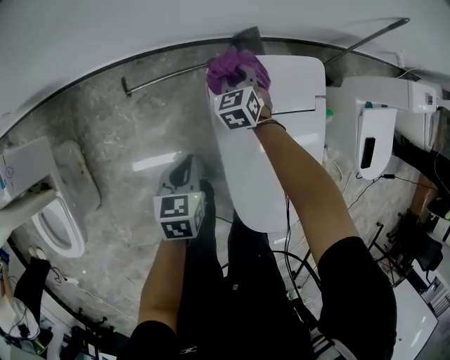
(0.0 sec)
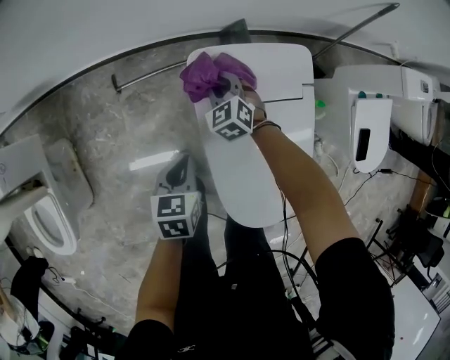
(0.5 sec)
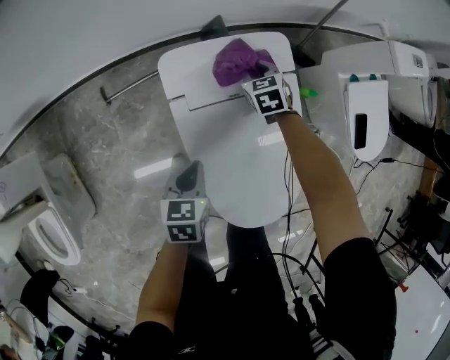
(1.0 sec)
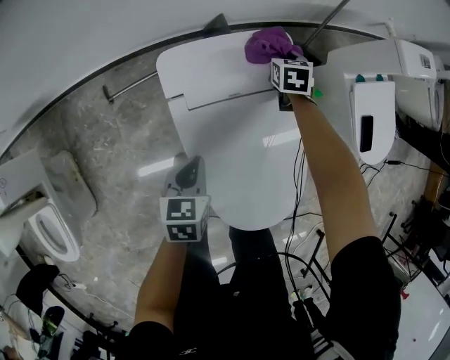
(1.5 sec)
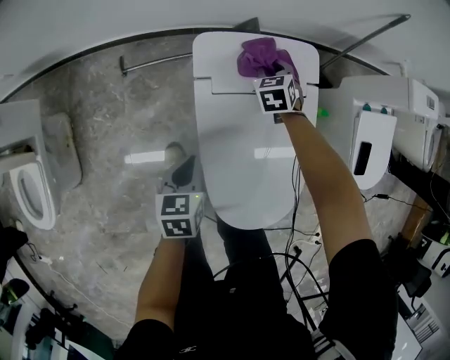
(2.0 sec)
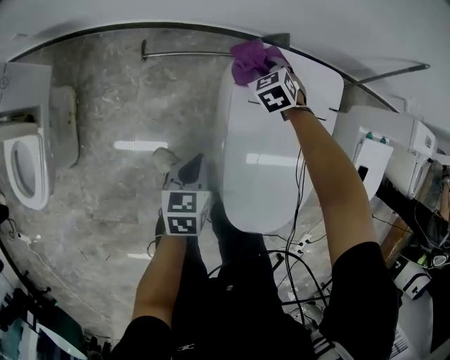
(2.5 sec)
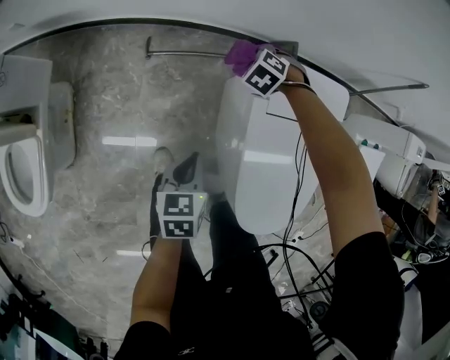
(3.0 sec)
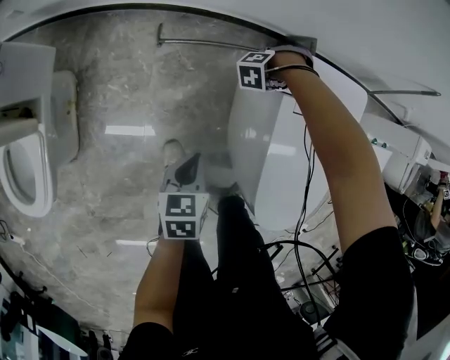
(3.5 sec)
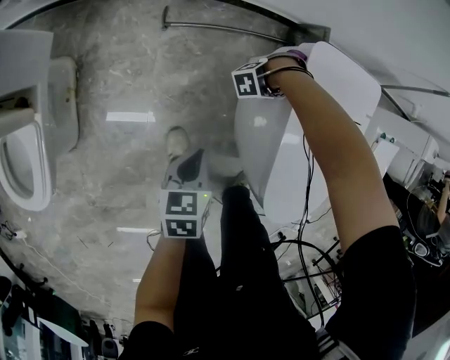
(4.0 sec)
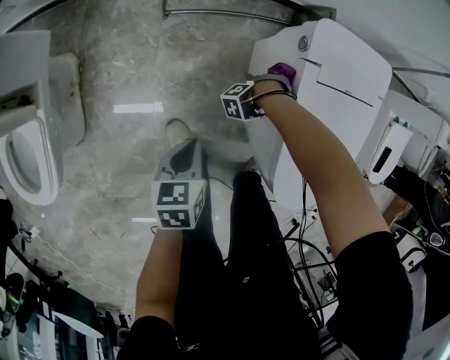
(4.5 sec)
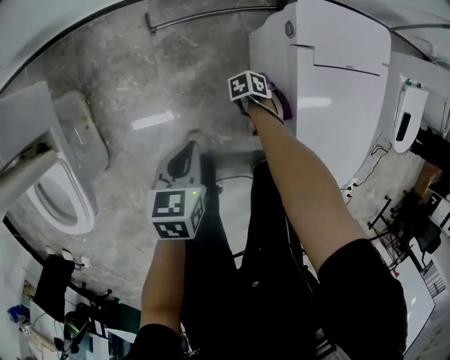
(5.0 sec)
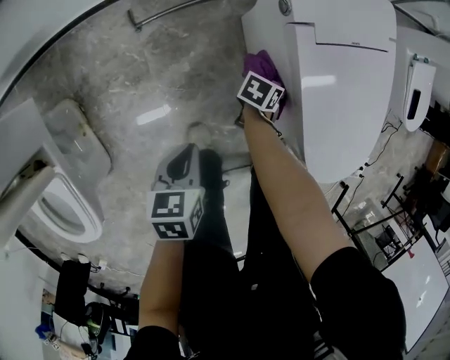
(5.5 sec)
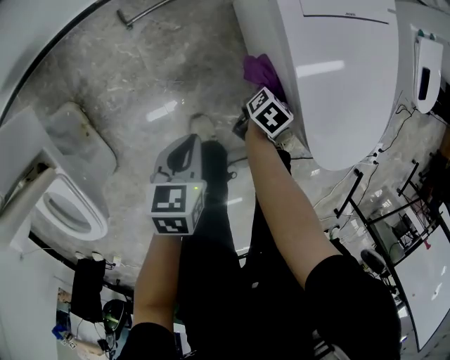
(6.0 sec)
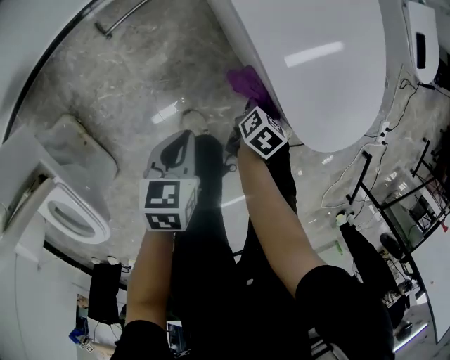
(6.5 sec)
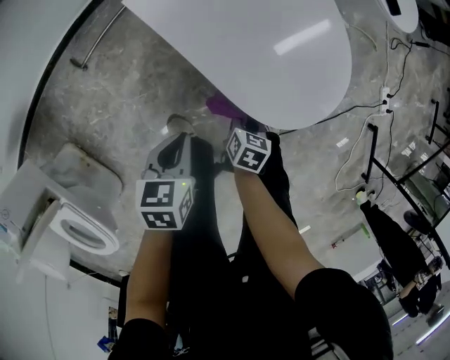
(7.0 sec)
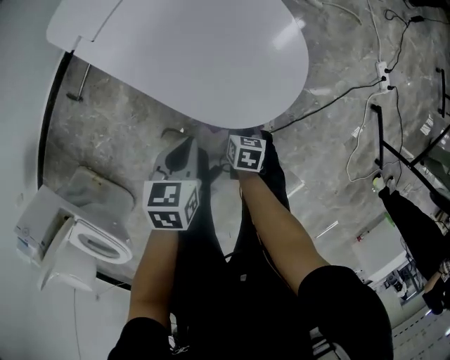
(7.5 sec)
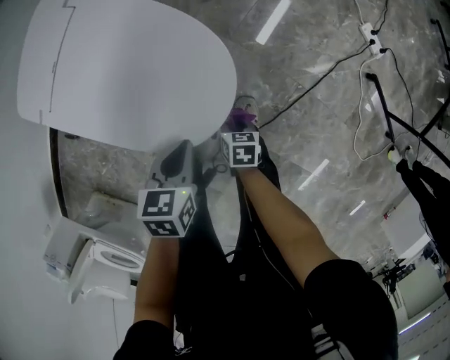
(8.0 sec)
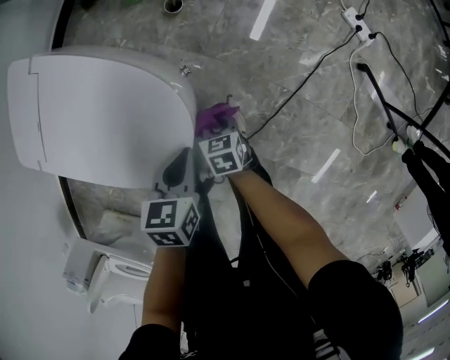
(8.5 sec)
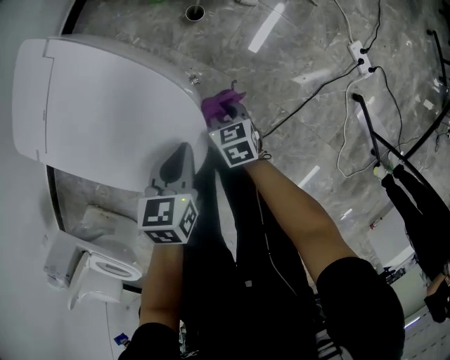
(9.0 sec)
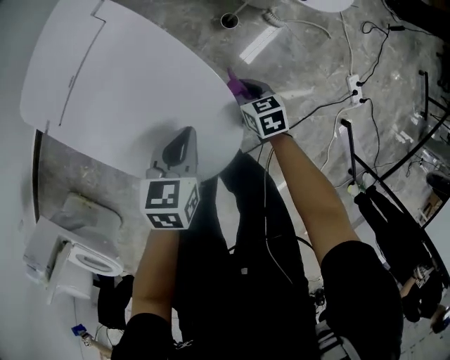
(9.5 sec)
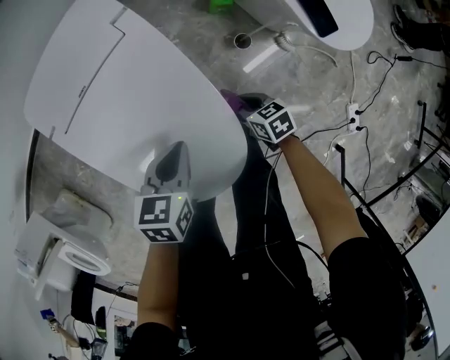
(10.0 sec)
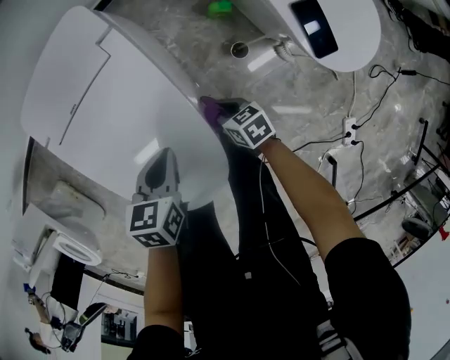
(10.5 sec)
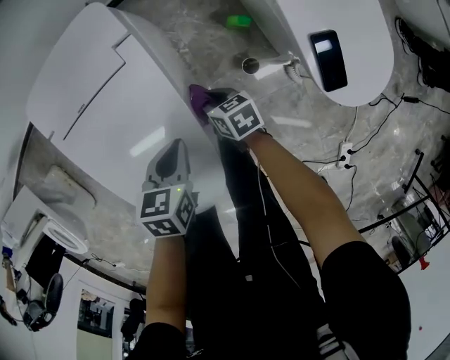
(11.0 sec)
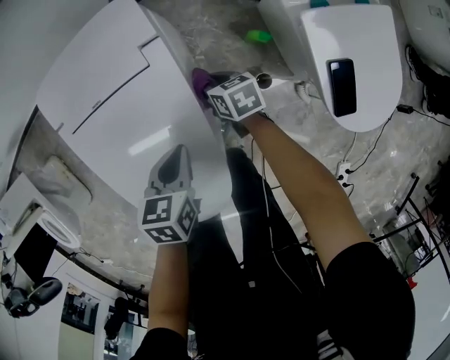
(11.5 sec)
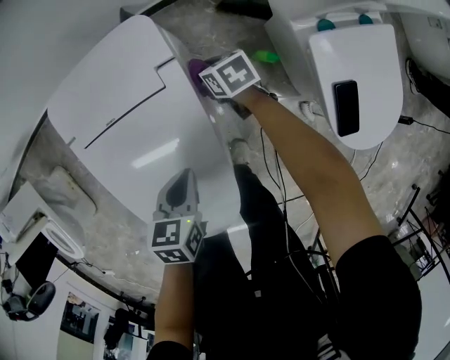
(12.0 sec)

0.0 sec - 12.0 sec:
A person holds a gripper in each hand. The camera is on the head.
0.0 sec - 2.0 sec: The left gripper moves to the right and backward, about 15 cm, while the right gripper travels to the right by about 15 cm.
2.0 sec - 4.0 sec: The right gripper moves about 30 cm, and changes its angle by roughly 110 degrees, while the left gripper changes place by approximately 25 cm.
4.0 sec - 6.0 sec: The left gripper turns by some 30 degrees; the right gripper moves roughly 20 cm, and rolls clockwise, seen from behind, by some 160 degrees.
6.0 sec - 8.0 sec: The pair of grippers is taken to the right, some 40 cm. The left gripper changes its angle by roughly 40 degrees.
8.0 sec - 10.0 sec: The left gripper changes place by roughly 20 cm, and turns by approximately 20 degrees. Meanwhile the right gripper moves about 30 cm, and twists roughly 40 degrees counterclockwise, seen from behind.
10.0 sec - 12.0 sec: The right gripper moves forward, approximately 35 cm. Meanwhile the left gripper is displaced forward by some 10 cm, and turns by about 20 degrees.

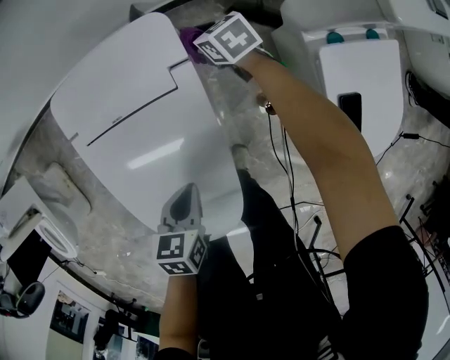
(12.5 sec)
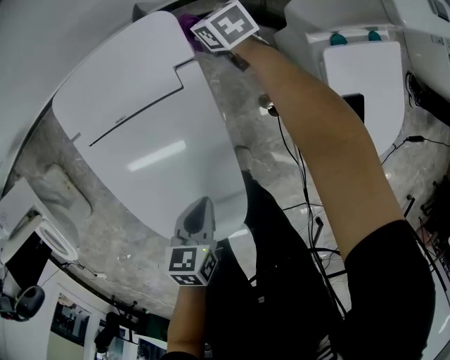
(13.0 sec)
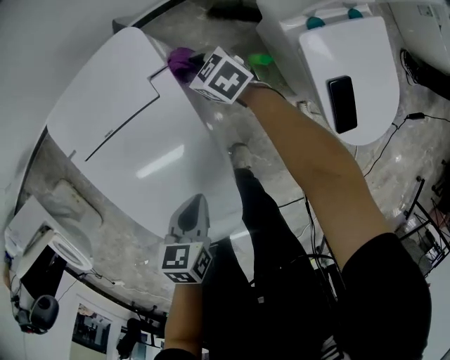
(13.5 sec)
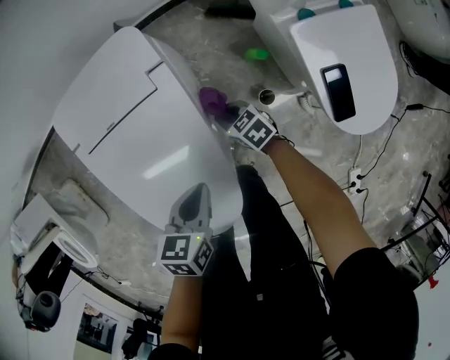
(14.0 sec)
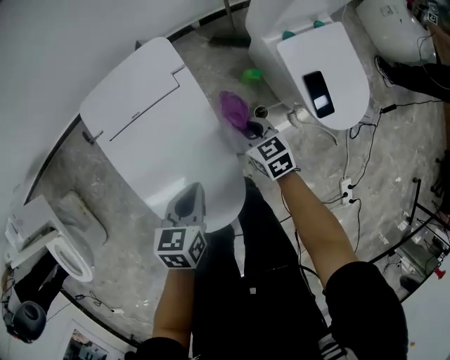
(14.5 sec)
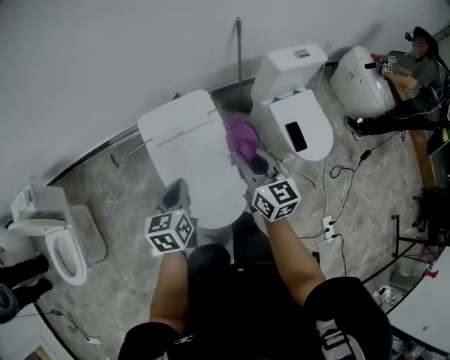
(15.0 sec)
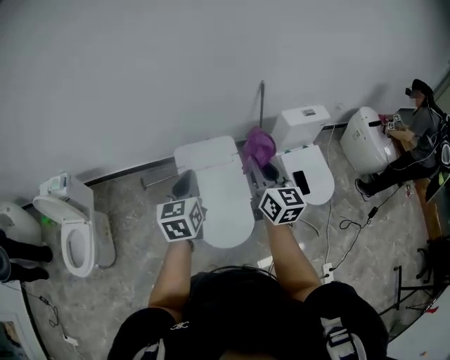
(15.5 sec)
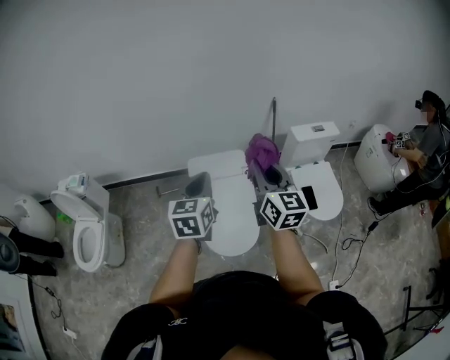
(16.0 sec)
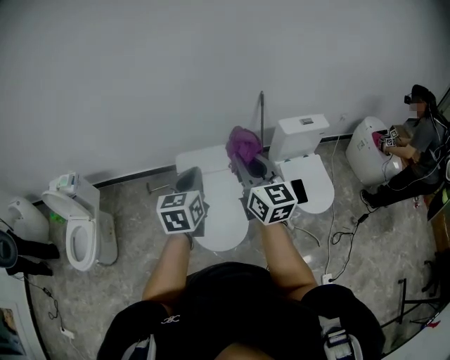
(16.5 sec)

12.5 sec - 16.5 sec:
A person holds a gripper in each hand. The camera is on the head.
12.5 sec - 14.5 sec: The left gripper goes roughly 10 cm upward and backward. Meanwhile the right gripper moves backward and upward, roughly 35 cm, and turns by about 20 degrees.
14.5 sec - 16.5 sec: Both grippers travel together upward, about 60 cm. The left gripper changes its angle by some 40 degrees, while the right gripper tips its fingers upward by some 40 degrees.

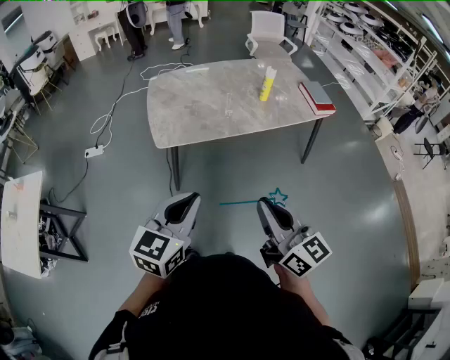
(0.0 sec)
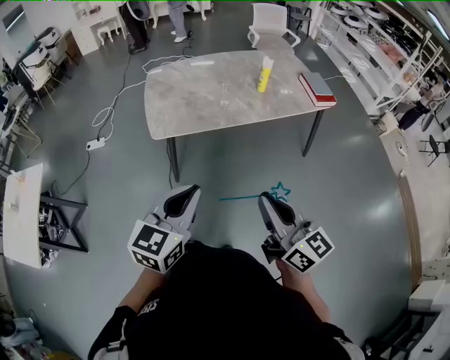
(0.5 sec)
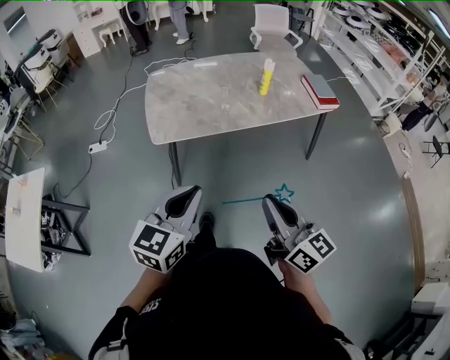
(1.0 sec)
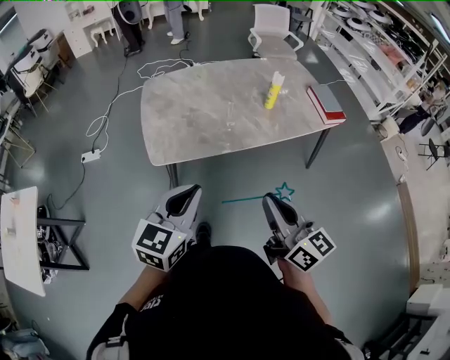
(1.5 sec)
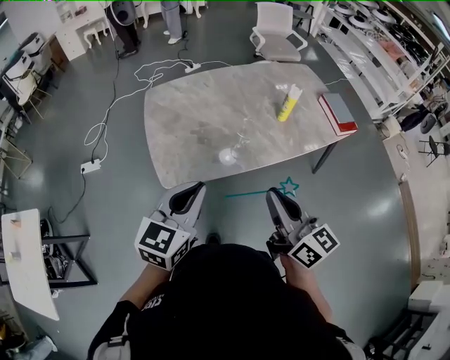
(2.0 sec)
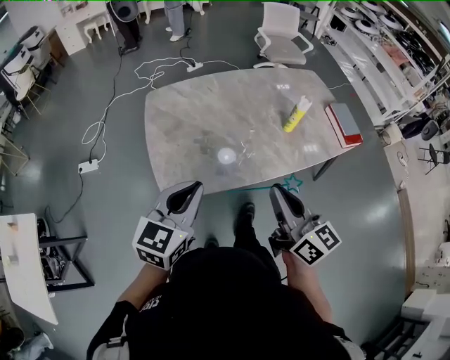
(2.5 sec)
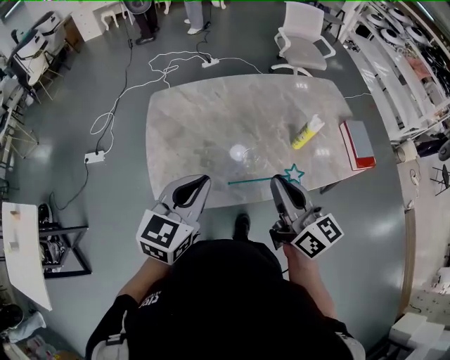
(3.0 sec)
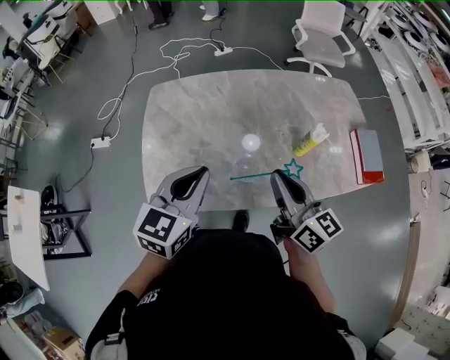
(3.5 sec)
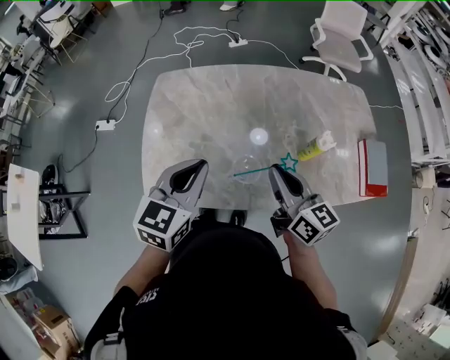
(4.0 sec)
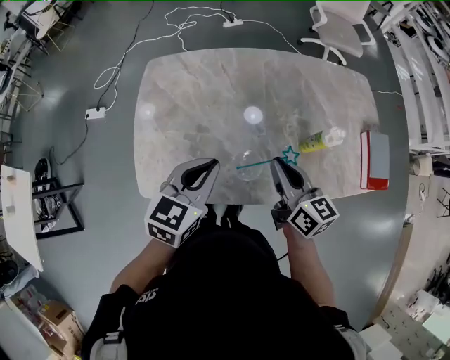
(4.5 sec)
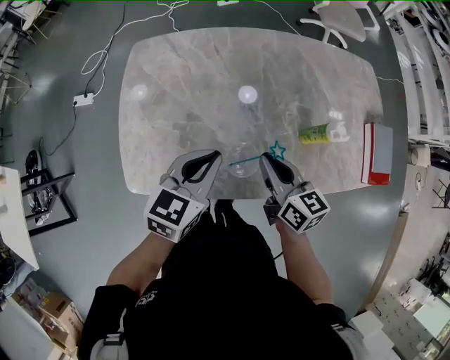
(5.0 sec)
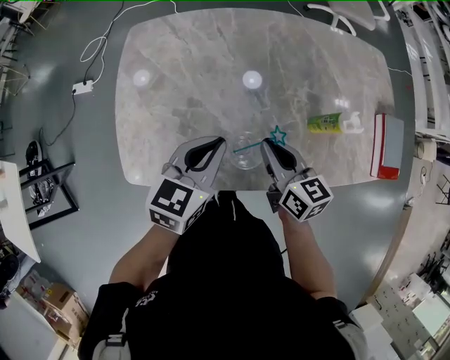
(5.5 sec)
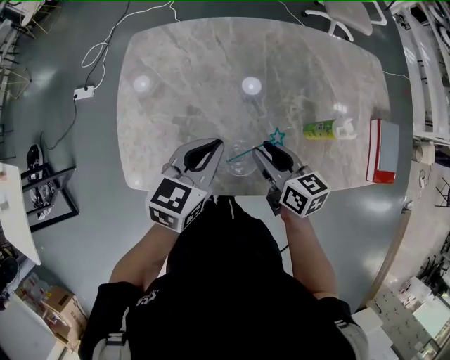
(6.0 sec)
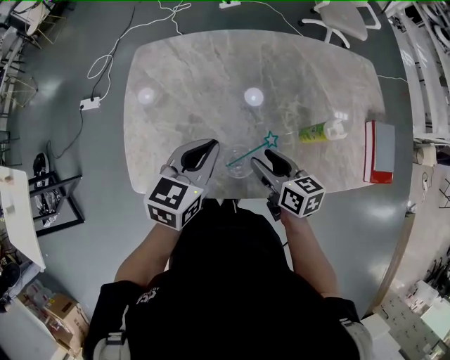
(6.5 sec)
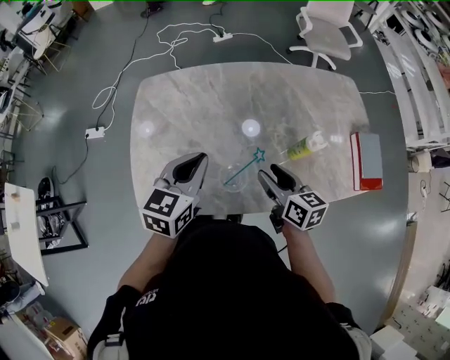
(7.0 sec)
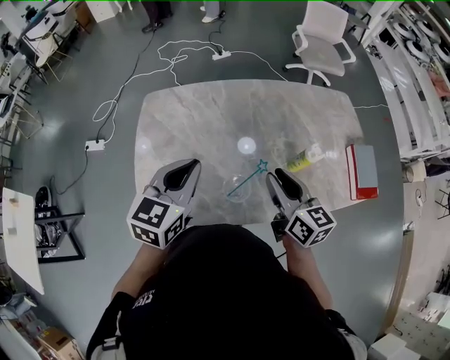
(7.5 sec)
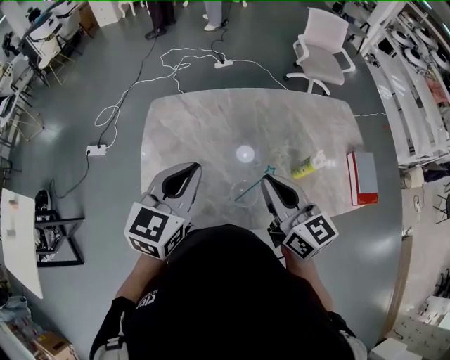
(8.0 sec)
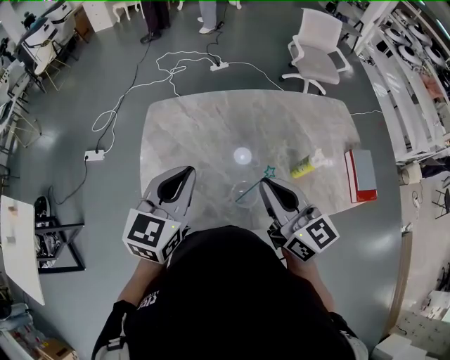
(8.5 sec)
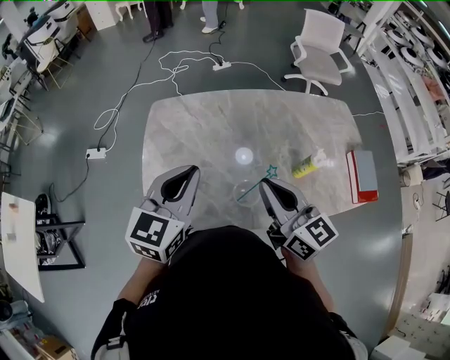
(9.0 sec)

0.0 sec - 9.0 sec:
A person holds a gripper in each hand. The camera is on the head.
0.0 sec - 2.0 sec: Both grippers travel together forward, some 25 cm.
2.0 sec - 4.5 sec: The right gripper goes some 35 cm forward, and turns by roughly 20 degrees. The left gripper is displaced forward and to the right by approximately 30 cm.
4.5 sec - 7.0 sec: The left gripper goes downward and returns, some 10 cm each way, while the right gripper is displaced downward by approximately 5 cm, and opens up.
7.0 sec - 9.0 sec: The right gripper goes about 20 cm upward and to the left, rotates some 30 degrees, and closes up; the left gripper moves upward and to the left, roughly 10 cm.

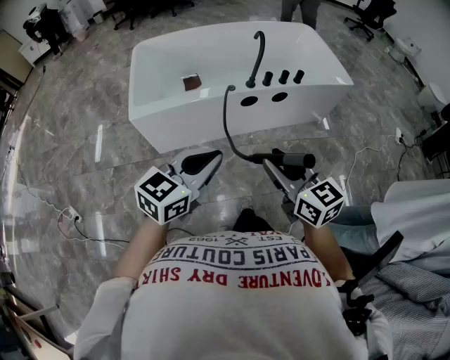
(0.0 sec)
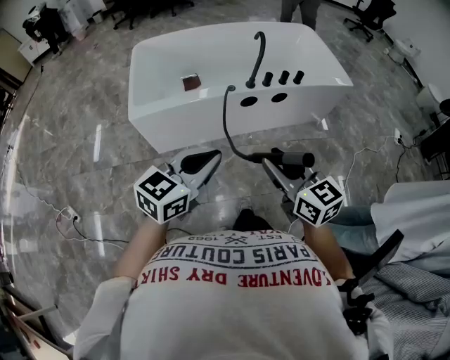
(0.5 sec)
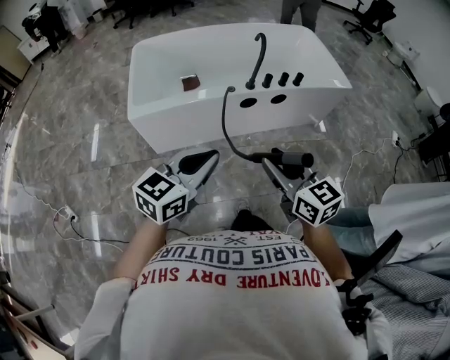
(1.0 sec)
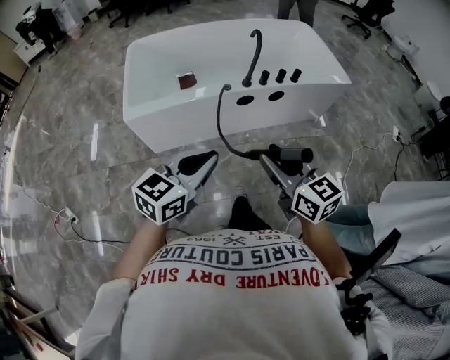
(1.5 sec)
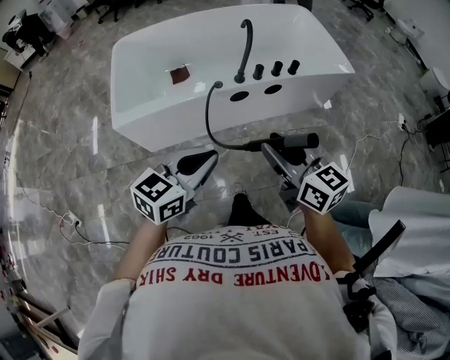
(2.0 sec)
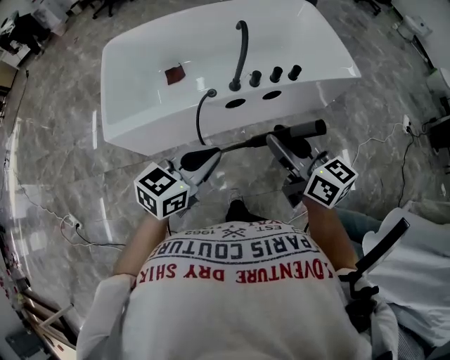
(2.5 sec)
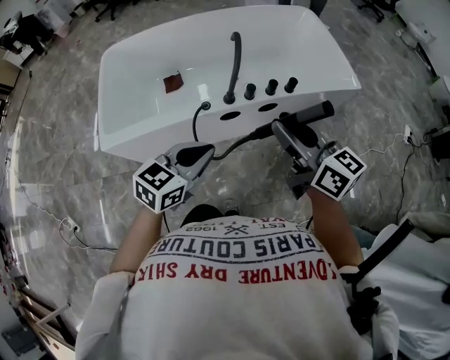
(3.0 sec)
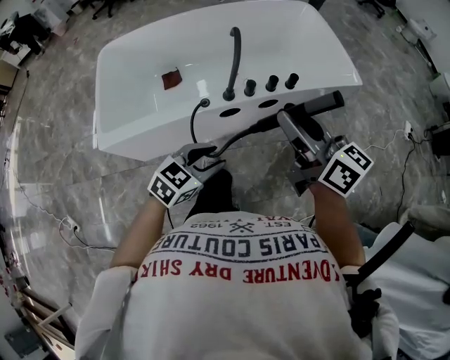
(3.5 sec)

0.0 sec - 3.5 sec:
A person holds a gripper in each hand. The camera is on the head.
0.0 sec - 2.0 sec: The two grippers go about 10 cm forward.
2.0 sec - 3.5 sec: The right gripper travels forward by some 20 cm; the left gripper travels forward and downward by roughly 20 cm, rotates some 20 degrees, and opens its fingers.
